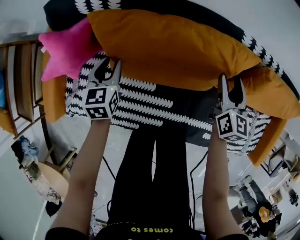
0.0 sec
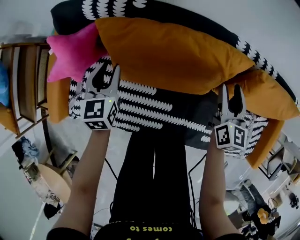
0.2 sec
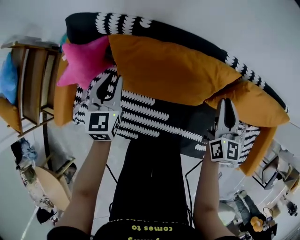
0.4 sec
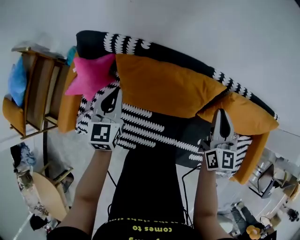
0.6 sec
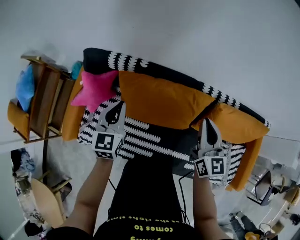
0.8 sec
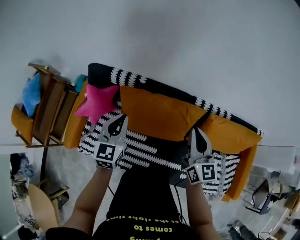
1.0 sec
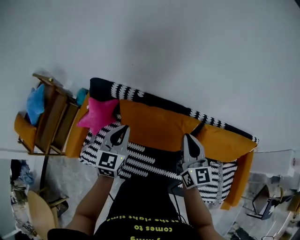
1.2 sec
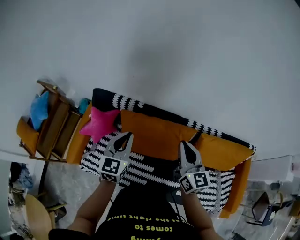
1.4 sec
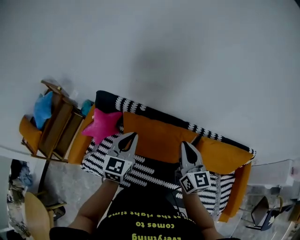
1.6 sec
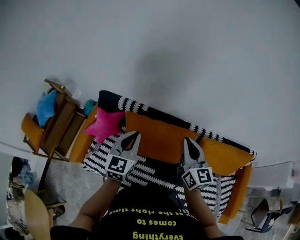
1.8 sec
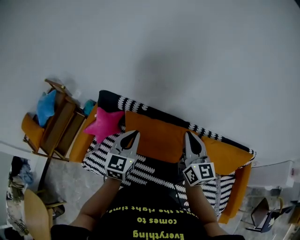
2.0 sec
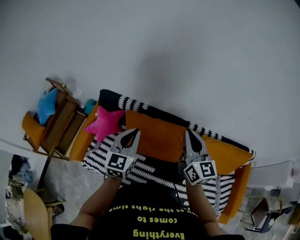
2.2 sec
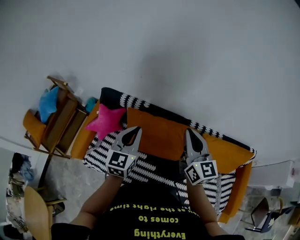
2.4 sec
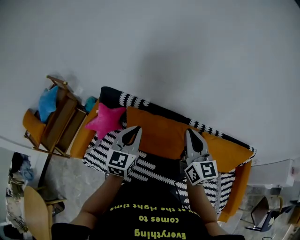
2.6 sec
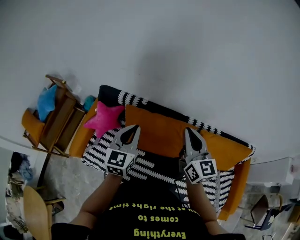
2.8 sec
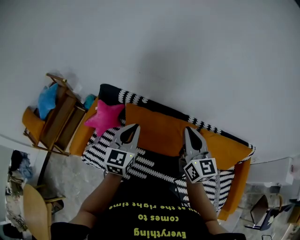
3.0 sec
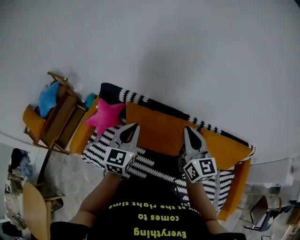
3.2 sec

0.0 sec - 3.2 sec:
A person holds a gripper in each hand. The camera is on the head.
0.0 sec - 1.6 sec: The two grippers go approximately 40 cm upward. The right gripper changes its angle by approximately 30 degrees, and closes, while the left gripper swivels some 30 degrees, and closes.
1.6 sec - 3.2 sec: The right gripper shifts by about 5 cm.

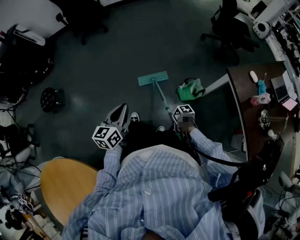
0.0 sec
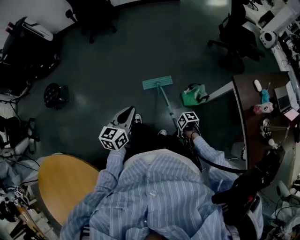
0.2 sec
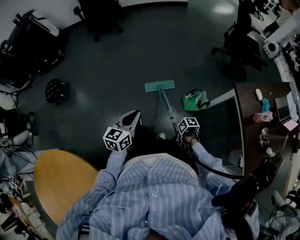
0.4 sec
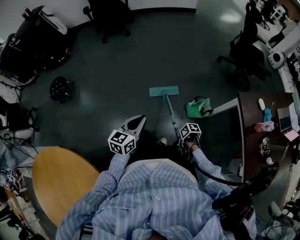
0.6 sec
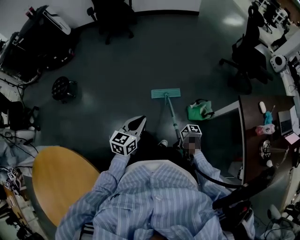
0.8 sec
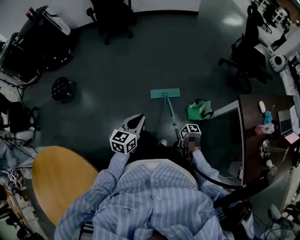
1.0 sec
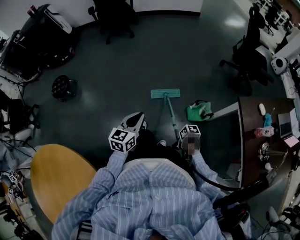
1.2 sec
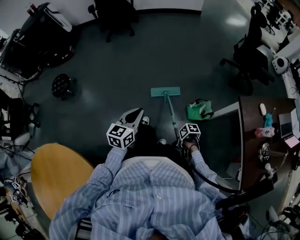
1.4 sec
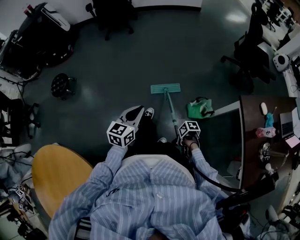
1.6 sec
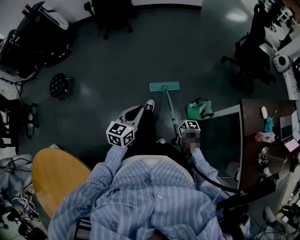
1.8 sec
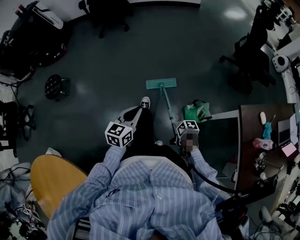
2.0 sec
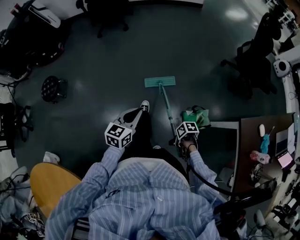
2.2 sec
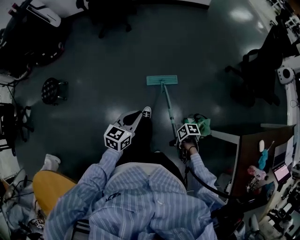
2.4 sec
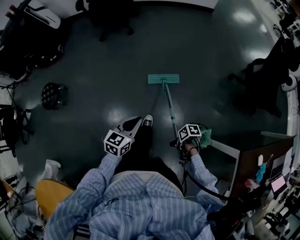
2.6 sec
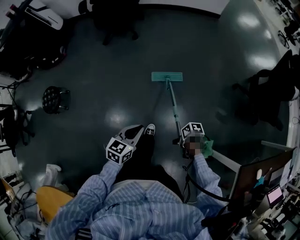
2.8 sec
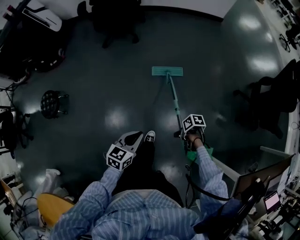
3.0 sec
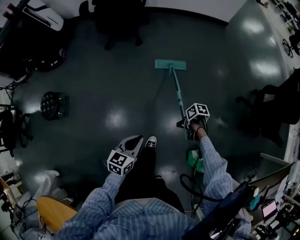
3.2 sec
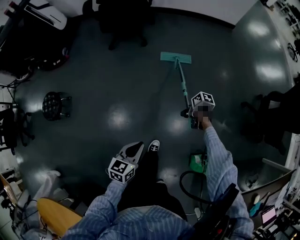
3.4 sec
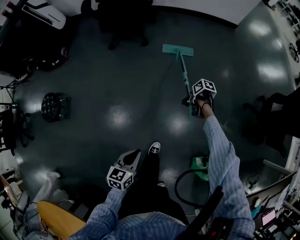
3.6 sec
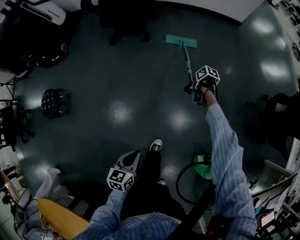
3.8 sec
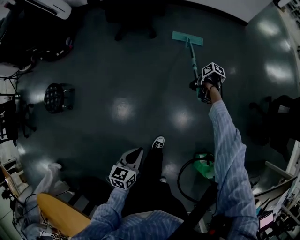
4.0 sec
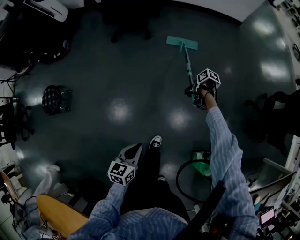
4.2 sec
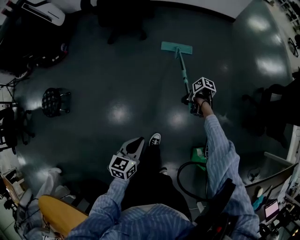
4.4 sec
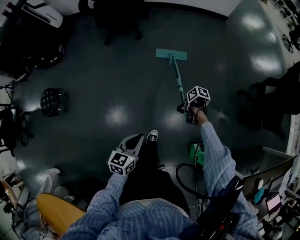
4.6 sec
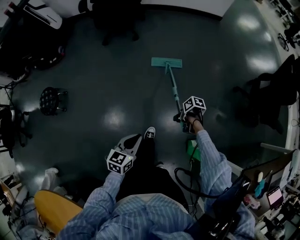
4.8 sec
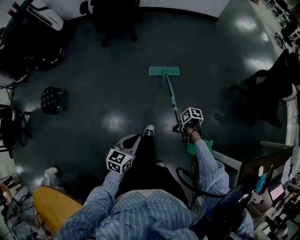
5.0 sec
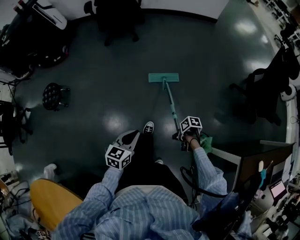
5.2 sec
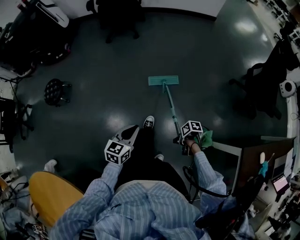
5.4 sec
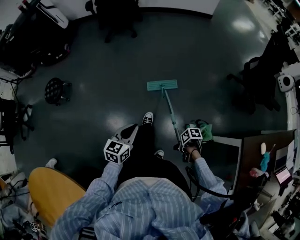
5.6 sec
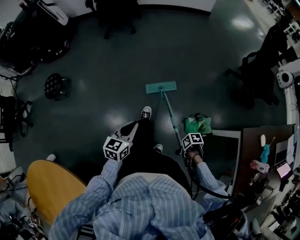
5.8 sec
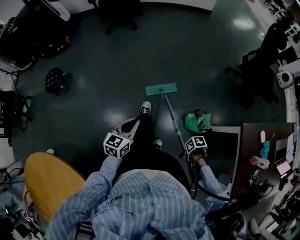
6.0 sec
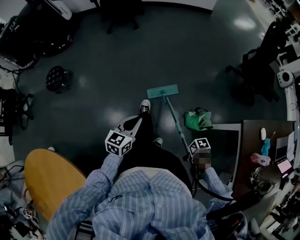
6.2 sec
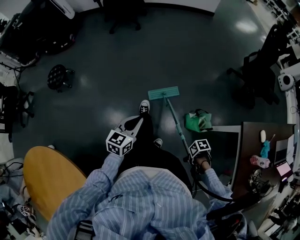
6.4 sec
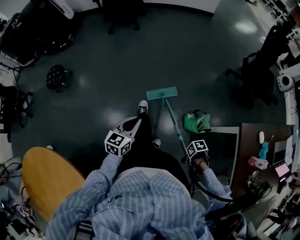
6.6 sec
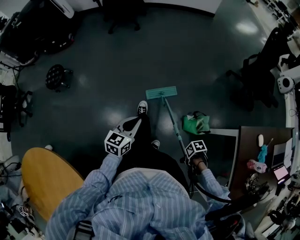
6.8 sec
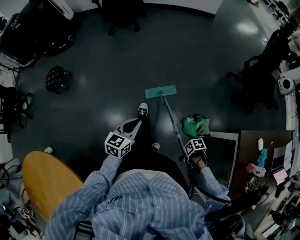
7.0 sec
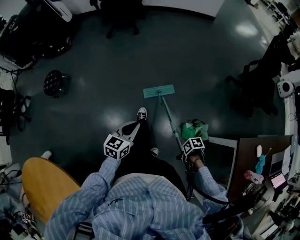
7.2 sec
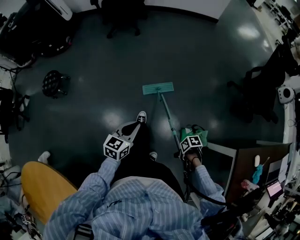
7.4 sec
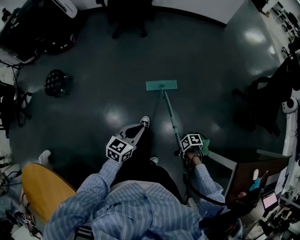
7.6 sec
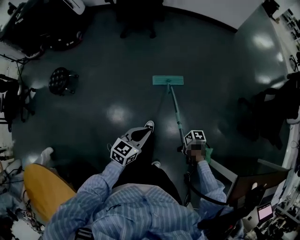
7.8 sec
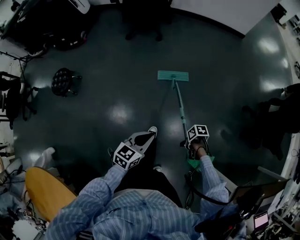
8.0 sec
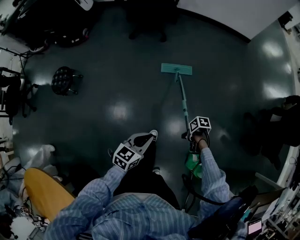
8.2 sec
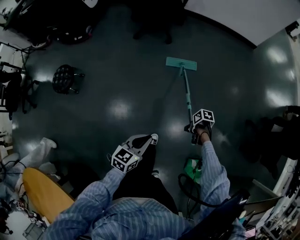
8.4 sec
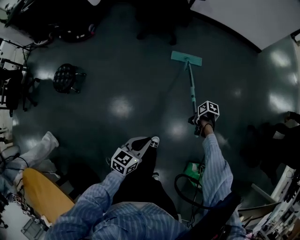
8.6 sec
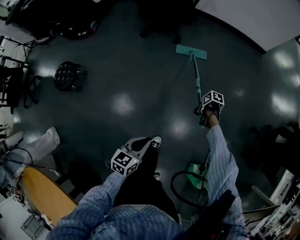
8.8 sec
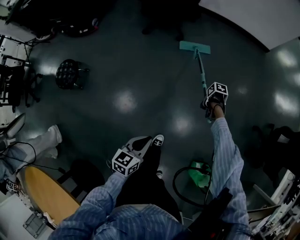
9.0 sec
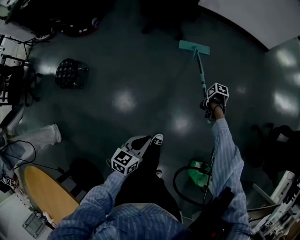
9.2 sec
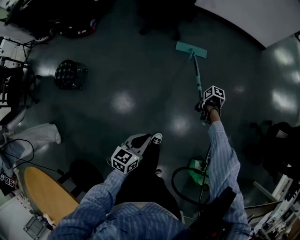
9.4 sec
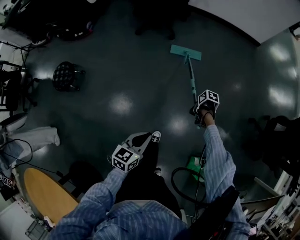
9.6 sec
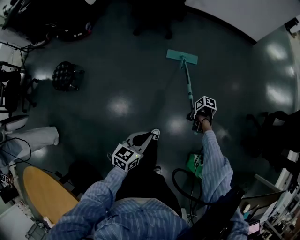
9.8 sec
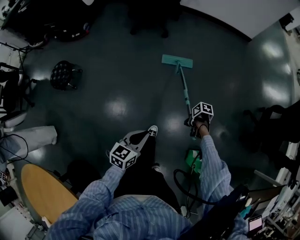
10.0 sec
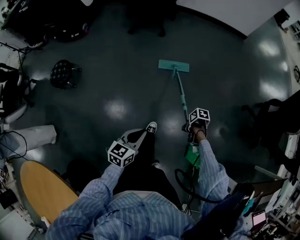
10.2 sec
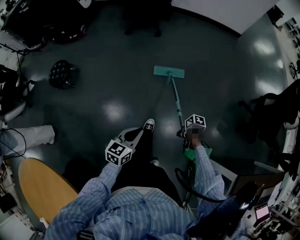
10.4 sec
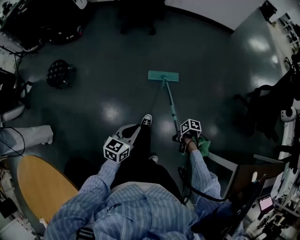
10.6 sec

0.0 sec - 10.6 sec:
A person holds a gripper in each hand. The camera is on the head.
1.6 sec - 3.0 sec: The left gripper shifts by some 40 cm.
3.0 sec - 4.6 sec: The left gripper reaches some 10 cm downward, then returns.
4.6 sec - 6.0 sec: The left gripper shifts by about 30 cm.
6.0 sec - 7.6 sec: The left gripper changes place by about 15 cm.
7.6 sec - 9.0 sec: The left gripper moves about 25 cm.
9.0 sec - 10.6 sec: The left gripper shifts by some 25 cm.

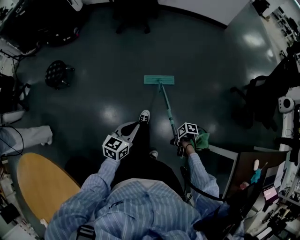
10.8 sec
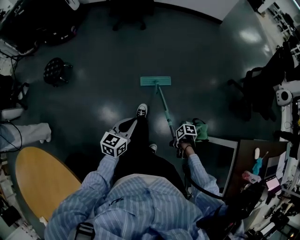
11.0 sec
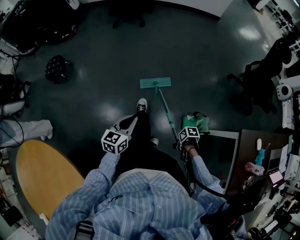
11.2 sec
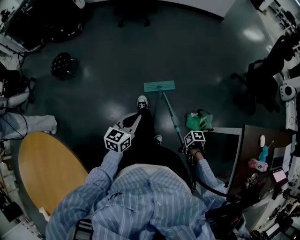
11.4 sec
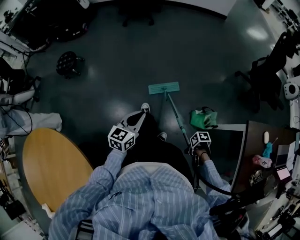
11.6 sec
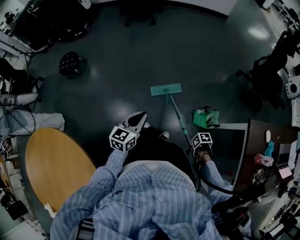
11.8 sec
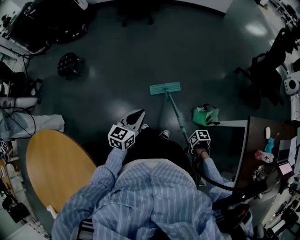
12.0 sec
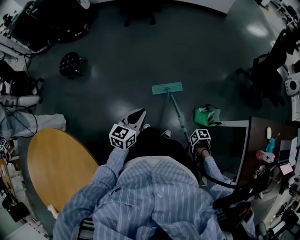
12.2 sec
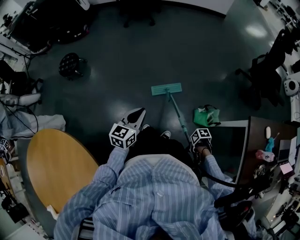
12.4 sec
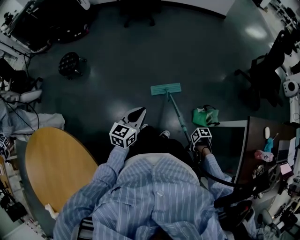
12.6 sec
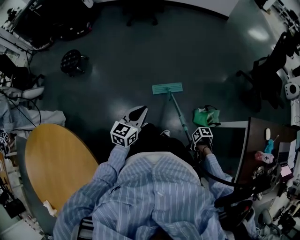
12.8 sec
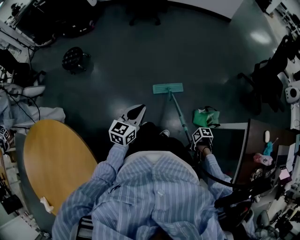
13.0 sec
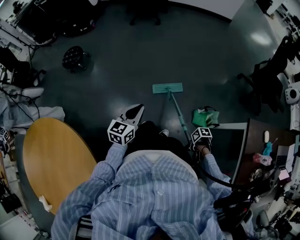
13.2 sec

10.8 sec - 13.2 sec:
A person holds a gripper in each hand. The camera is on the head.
10.8 sec - 12.0 sec: The left gripper shifts by some 15 cm.

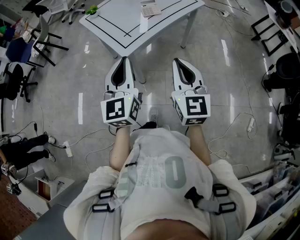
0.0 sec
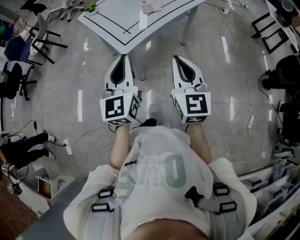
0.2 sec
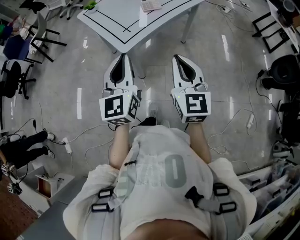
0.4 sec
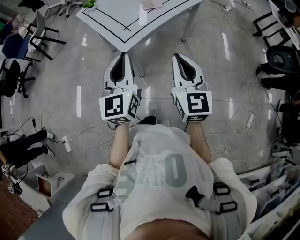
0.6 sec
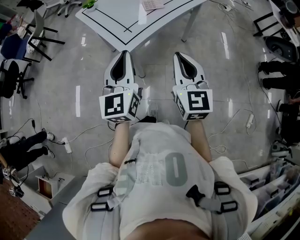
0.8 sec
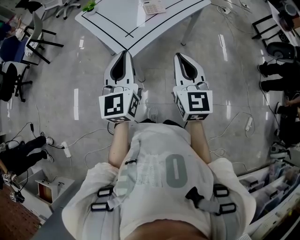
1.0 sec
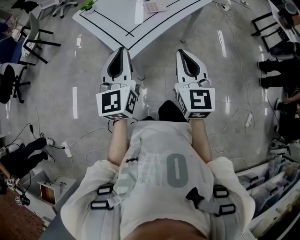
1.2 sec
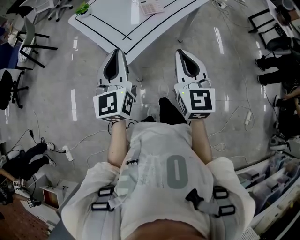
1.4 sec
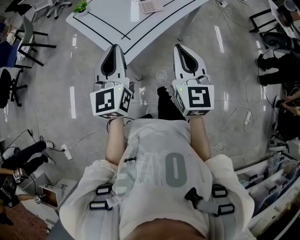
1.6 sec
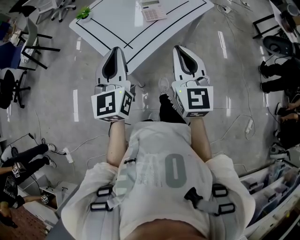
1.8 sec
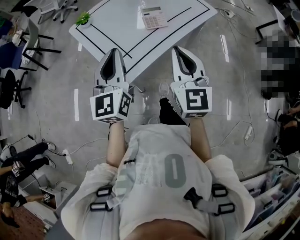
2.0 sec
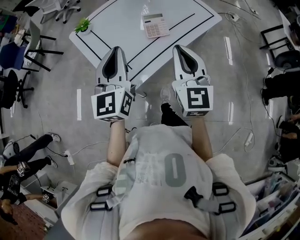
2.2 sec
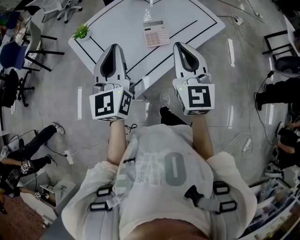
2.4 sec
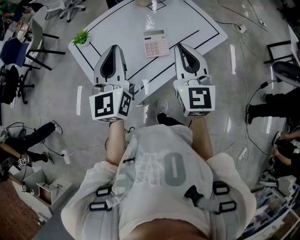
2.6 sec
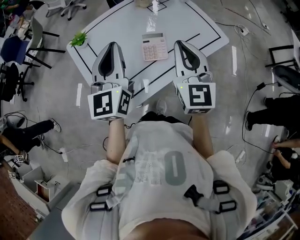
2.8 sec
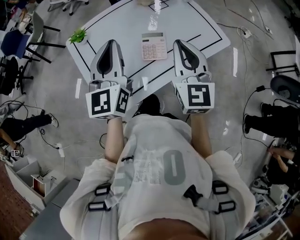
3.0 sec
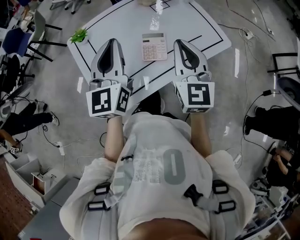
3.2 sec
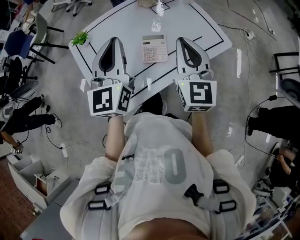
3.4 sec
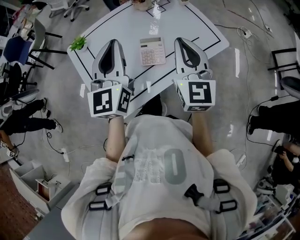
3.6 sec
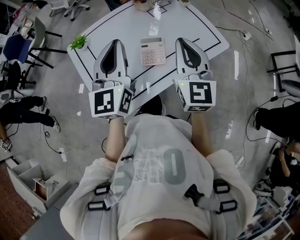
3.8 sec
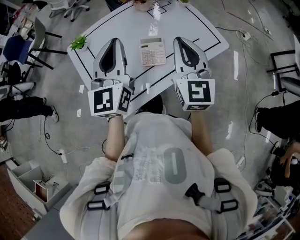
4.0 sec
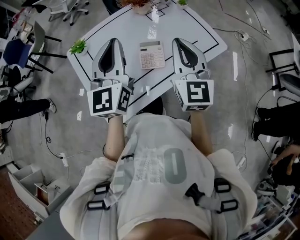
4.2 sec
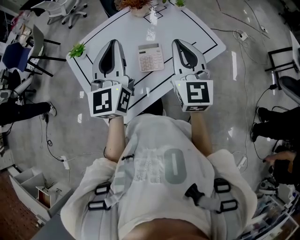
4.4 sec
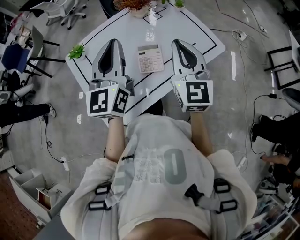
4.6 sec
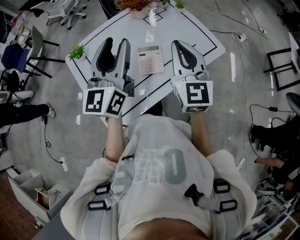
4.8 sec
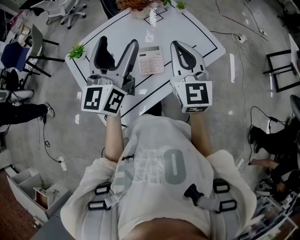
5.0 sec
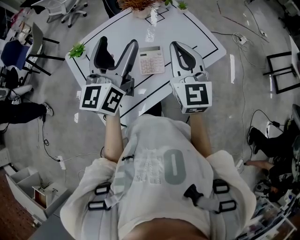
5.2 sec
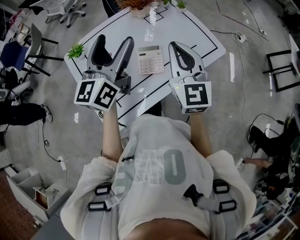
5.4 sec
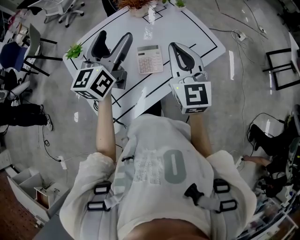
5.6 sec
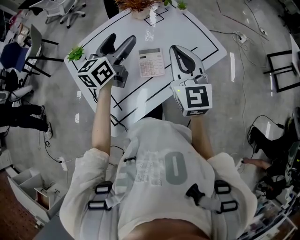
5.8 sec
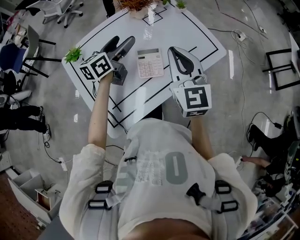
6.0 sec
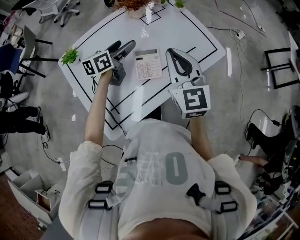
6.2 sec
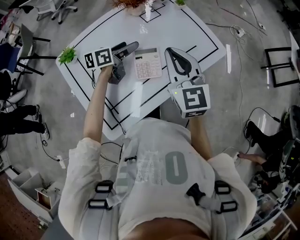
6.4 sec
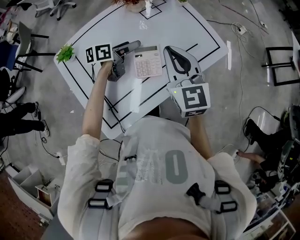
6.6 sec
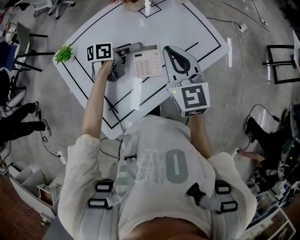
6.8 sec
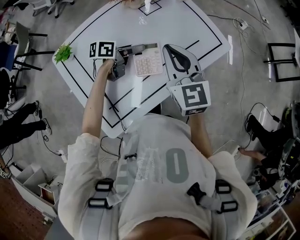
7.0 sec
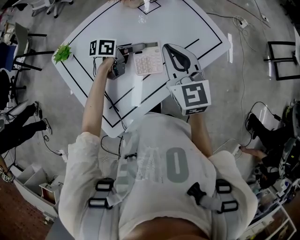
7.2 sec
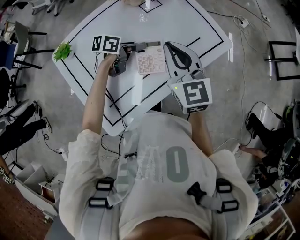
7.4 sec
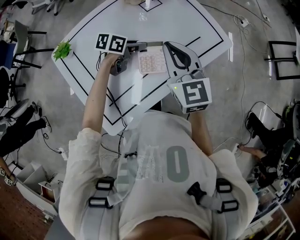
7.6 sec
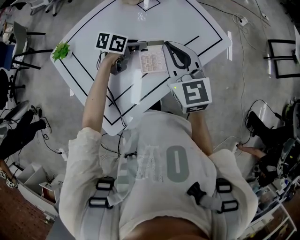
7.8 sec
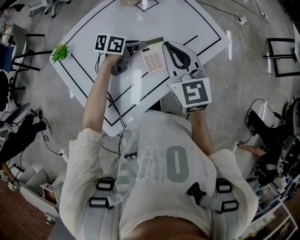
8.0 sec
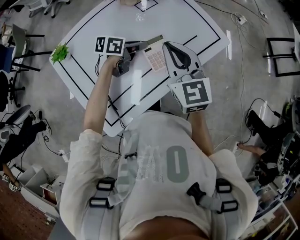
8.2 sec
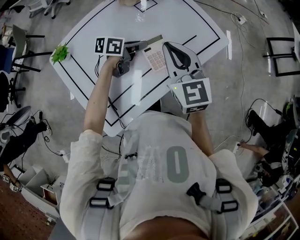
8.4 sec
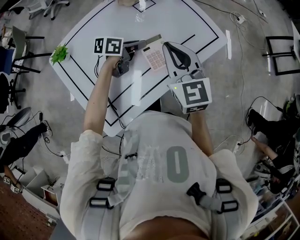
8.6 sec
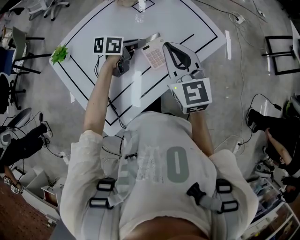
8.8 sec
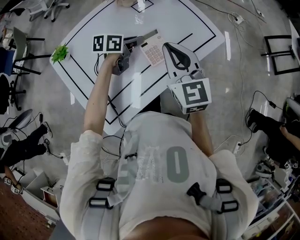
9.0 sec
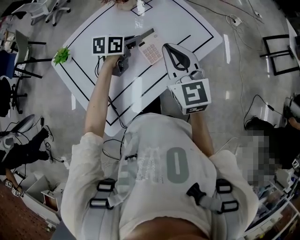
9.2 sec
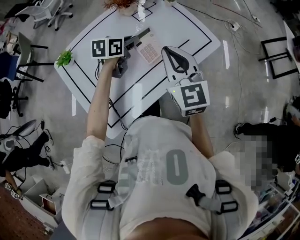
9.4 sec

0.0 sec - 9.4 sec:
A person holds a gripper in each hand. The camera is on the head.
0.0 sec - 1.6 sec: The grippers both shift forward by some 15 cm.
1.6 sec - 3.2 sec: Both grippers move forward, roughly 30 cm.
3.2 sec - 4.8 sec: The left gripper changes place by approximately 5 cm, and opens up.
4.8 sec - 6.2 sec: The left gripper is displaced downward and forward by roughly 25 cm, turns by some 50 degrees, and opens its fingers.
6.2 sec - 7.8 sec: The left gripper shifts some 15 cm downward and to the right, swivels roughly 40 degrees, and closes up, while the right gripper shifts by some 5 cm.
7.8 sec - 9.4 sec: The left gripper shifts roughly 10 cm upward, and turns by approximately 20 degrees, while the right gripper changes place by about 5 cm.
